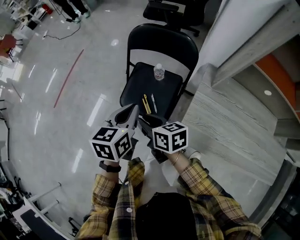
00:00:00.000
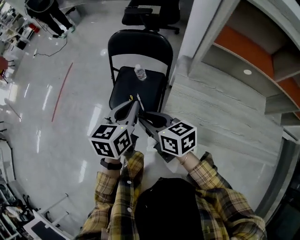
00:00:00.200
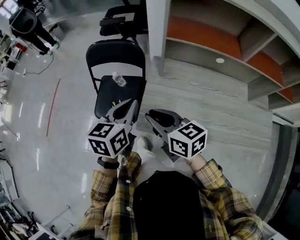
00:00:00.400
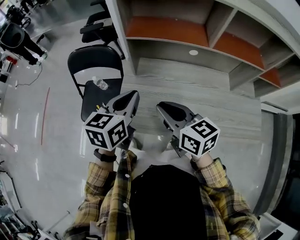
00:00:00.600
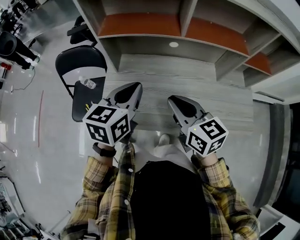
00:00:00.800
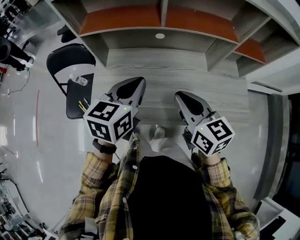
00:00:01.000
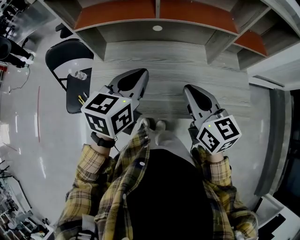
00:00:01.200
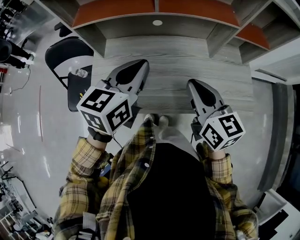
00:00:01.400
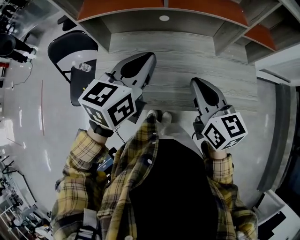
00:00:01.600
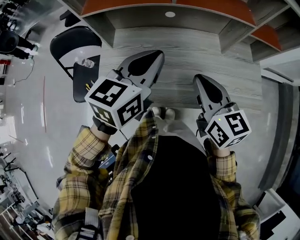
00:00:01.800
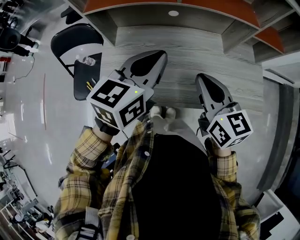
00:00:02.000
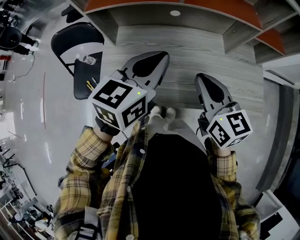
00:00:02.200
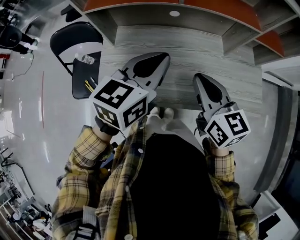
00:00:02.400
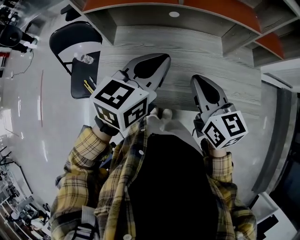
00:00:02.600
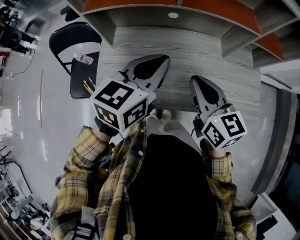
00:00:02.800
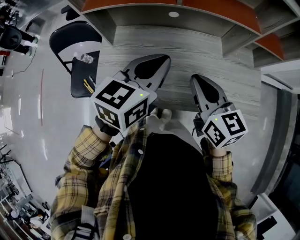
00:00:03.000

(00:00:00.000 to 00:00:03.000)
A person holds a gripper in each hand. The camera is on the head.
00:00:00.000 - 00:00:01.600: Both grippers are carried roughly 60 cm. The right gripper swivels approximately 50 degrees, and closes up. The left gripper turns by approximately 40 degrees.
00:00:01.600 - 00:00:03.000: There are only small adjustments of the grippers.

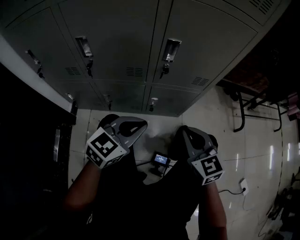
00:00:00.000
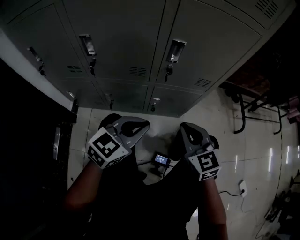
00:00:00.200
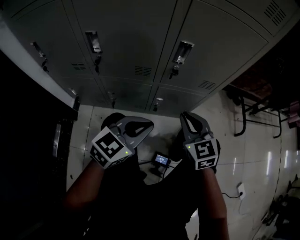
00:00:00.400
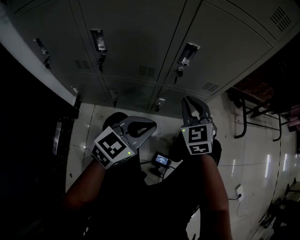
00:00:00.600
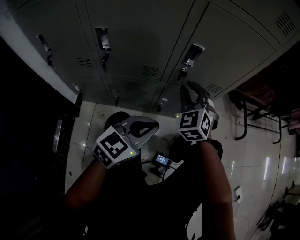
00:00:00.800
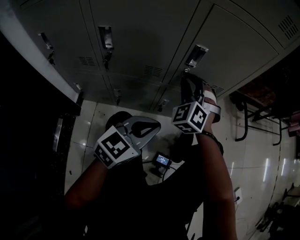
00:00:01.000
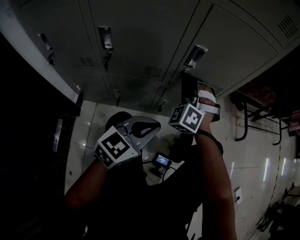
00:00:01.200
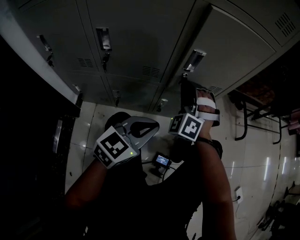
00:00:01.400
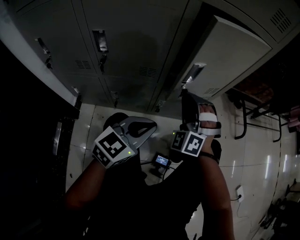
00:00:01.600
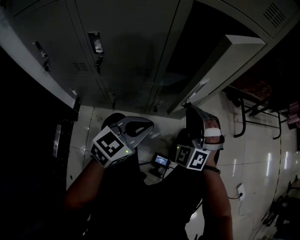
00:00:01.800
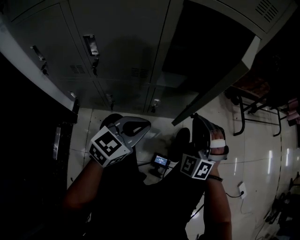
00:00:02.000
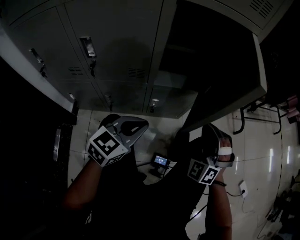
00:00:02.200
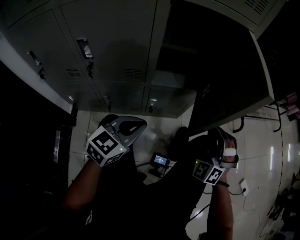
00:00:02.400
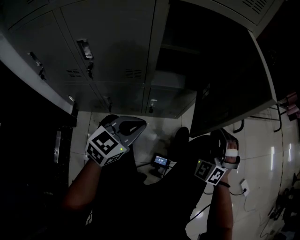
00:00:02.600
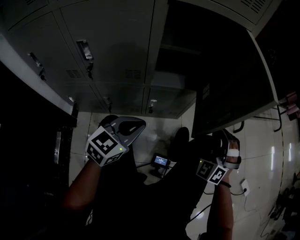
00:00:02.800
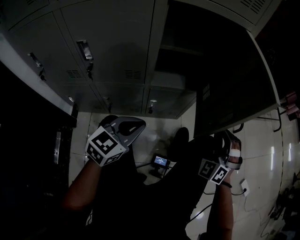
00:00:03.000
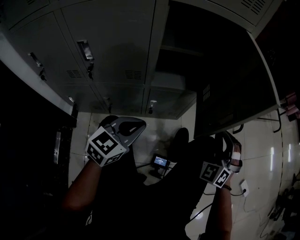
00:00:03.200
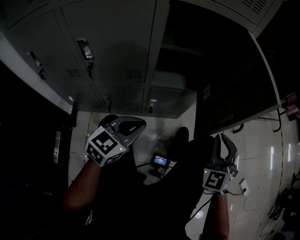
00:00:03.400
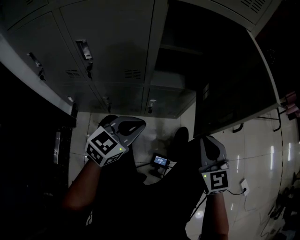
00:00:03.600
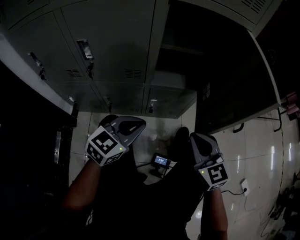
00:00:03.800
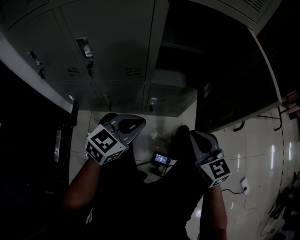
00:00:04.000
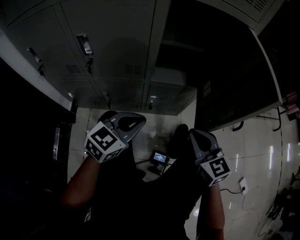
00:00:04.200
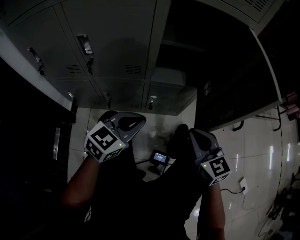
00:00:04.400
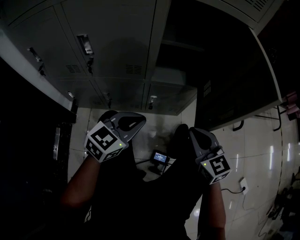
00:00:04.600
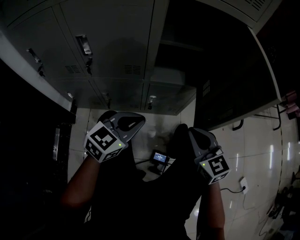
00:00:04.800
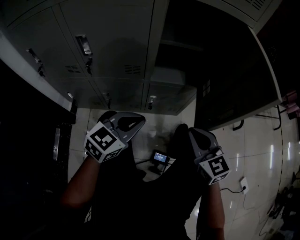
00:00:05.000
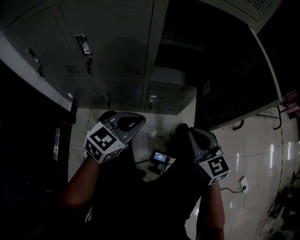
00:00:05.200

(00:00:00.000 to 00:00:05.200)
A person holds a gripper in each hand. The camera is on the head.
00:00:00.000 - 00:00:01.800: The right gripper travels forward by roughly 5 cm, and rotates around the line of its fingers by some 60 degrees, counterclockwise from behind.
00:00:01.800 - 00:00:03.400: The right gripper goes approximately 15 cm to the right, and rotates approximately 30 degrees.
00:00:03.400 - 00:00:05.200: The right gripper goes about 10 cm to the left, and turns by some 50 degrees.

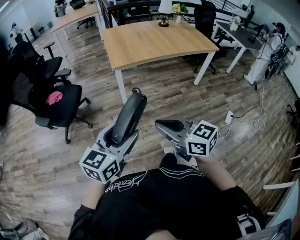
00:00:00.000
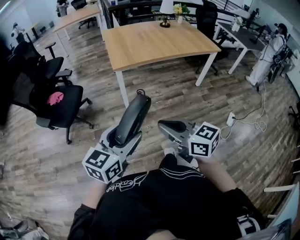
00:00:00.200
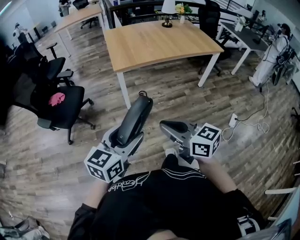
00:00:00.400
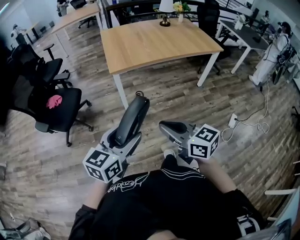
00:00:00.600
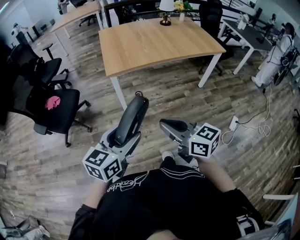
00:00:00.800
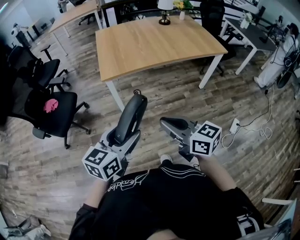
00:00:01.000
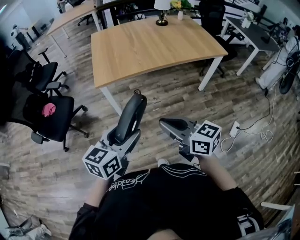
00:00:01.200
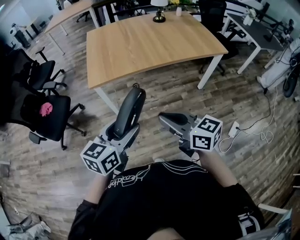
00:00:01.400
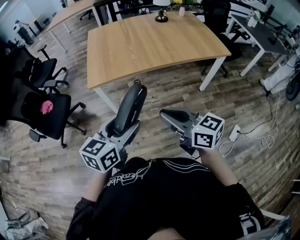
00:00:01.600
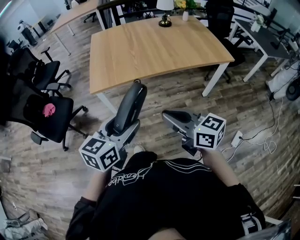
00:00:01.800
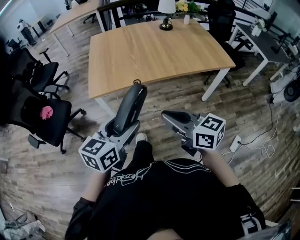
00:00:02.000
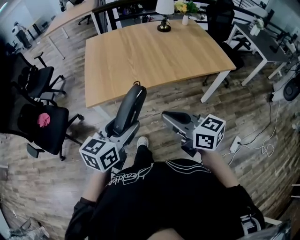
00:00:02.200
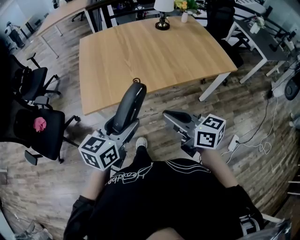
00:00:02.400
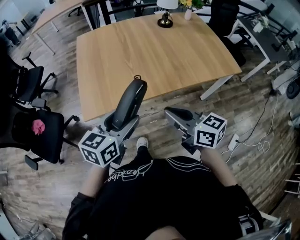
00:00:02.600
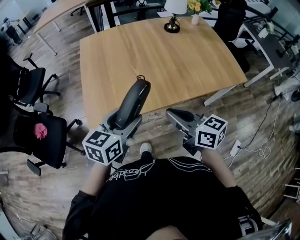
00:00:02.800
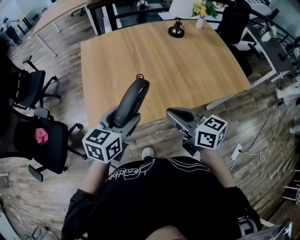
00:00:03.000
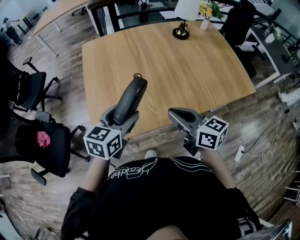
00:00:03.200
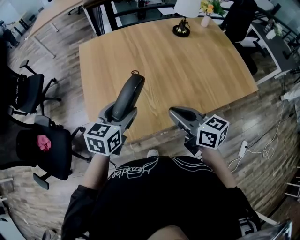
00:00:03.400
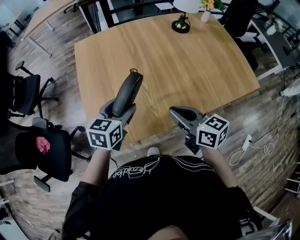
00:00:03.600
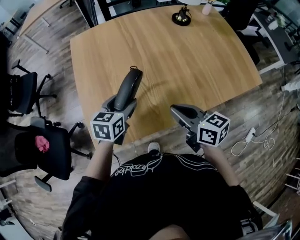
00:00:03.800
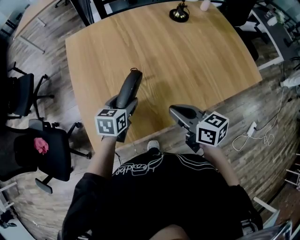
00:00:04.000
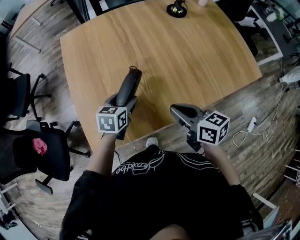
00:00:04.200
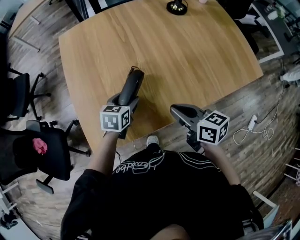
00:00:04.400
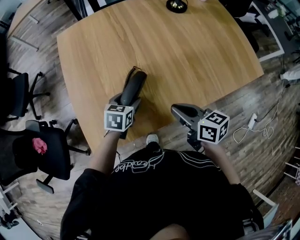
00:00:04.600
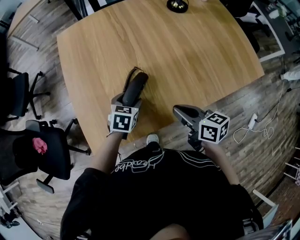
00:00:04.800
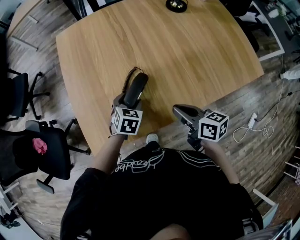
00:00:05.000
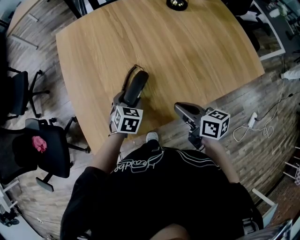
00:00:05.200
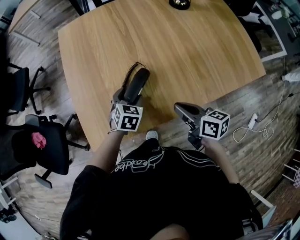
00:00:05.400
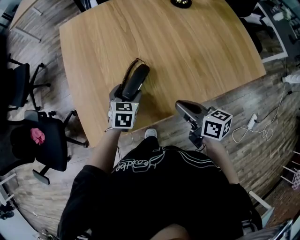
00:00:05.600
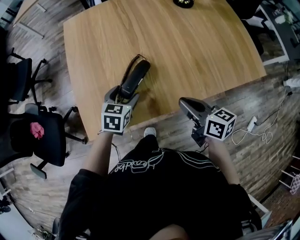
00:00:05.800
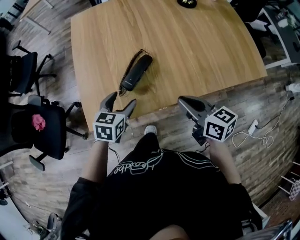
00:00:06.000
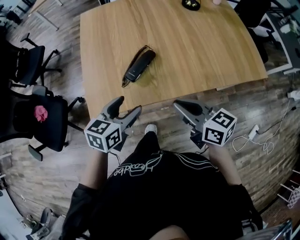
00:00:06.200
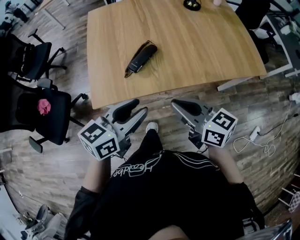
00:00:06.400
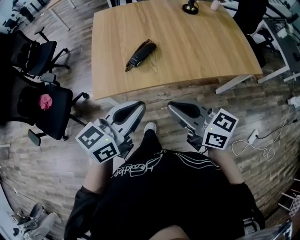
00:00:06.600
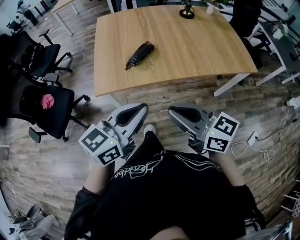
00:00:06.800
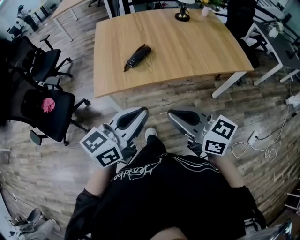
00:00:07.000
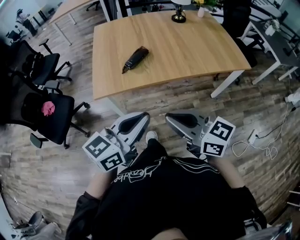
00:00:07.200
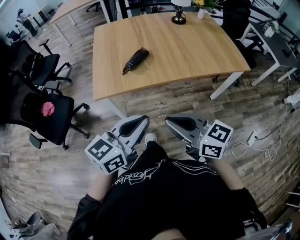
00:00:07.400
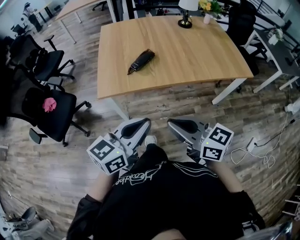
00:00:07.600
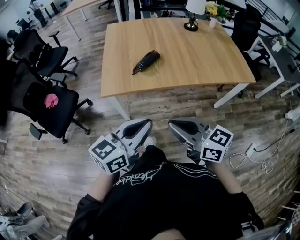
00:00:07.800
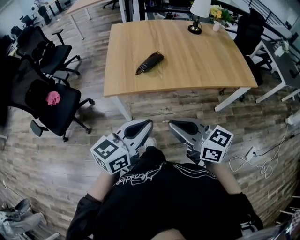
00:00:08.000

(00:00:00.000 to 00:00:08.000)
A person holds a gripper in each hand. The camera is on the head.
00:00:00.000 - 00:00:01.600: Both grippers move to the right and forward, roughly 40 cm.
00:00:01.600 - 00:00:03.200: The pair of grippers is taken forward, approximately 40 cm.
00:00:03.200 - 00:00:04.800: The left gripper is displaced downward and forward by approximately 25 cm, and rotates roughly 30 degrees. Meanwhile the right gripper travels downward by approximately 15 cm.
00:00:04.800 - 00:00:06.400: The left gripper travels backward and upward by some 35 cm, and angles its fingers upward, by some 40 degrees; the right gripper heads backward and upward, covering about 20 cm, and rotates roughly 20 degrees.
00:00:06.400 - 00:00:08.000: The grippers both shift backward by about 20 cm. The left gripper closes.

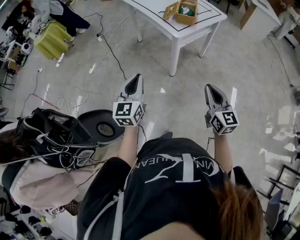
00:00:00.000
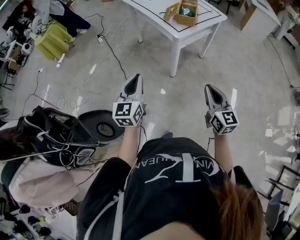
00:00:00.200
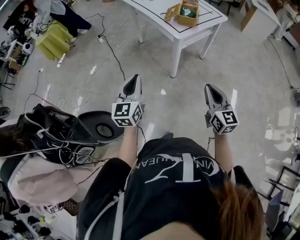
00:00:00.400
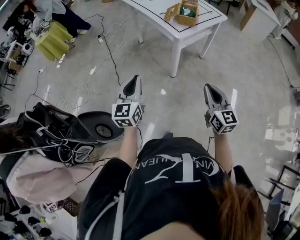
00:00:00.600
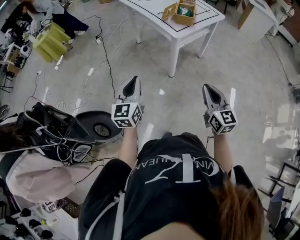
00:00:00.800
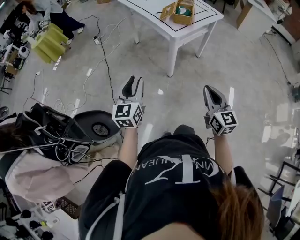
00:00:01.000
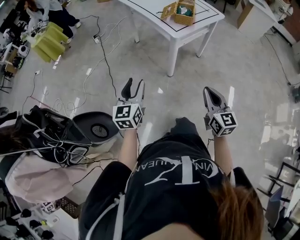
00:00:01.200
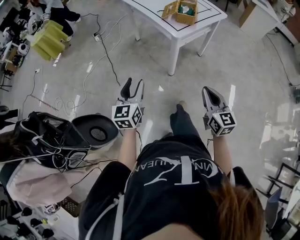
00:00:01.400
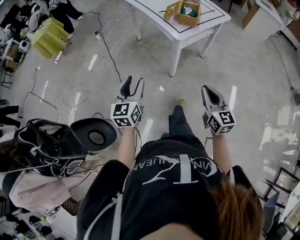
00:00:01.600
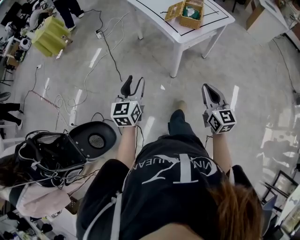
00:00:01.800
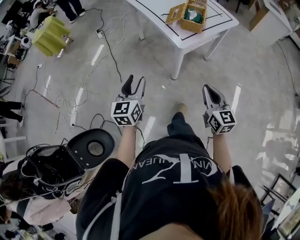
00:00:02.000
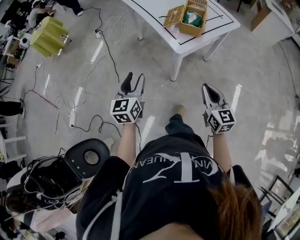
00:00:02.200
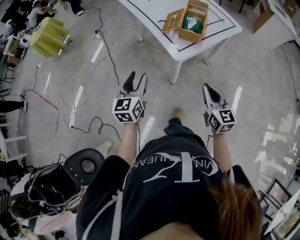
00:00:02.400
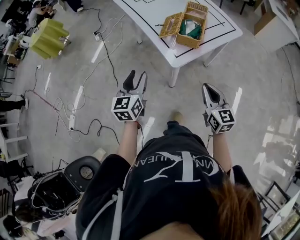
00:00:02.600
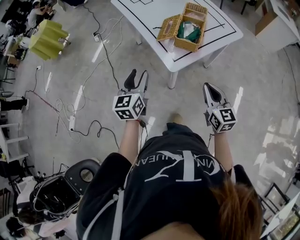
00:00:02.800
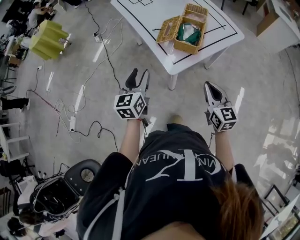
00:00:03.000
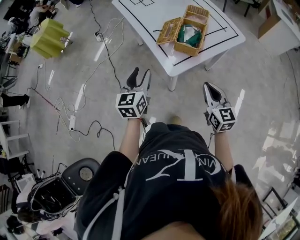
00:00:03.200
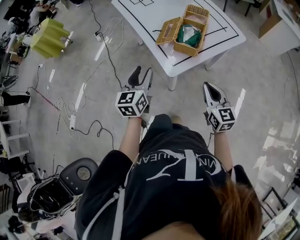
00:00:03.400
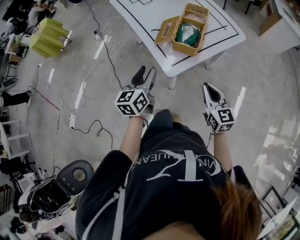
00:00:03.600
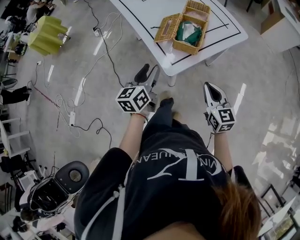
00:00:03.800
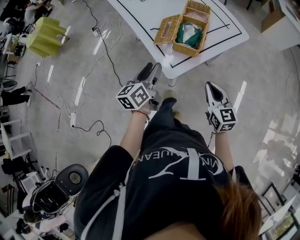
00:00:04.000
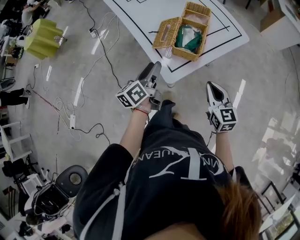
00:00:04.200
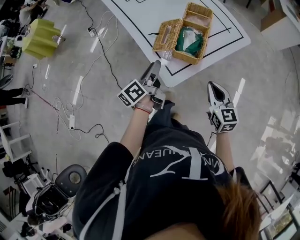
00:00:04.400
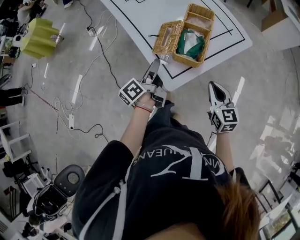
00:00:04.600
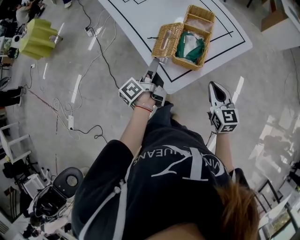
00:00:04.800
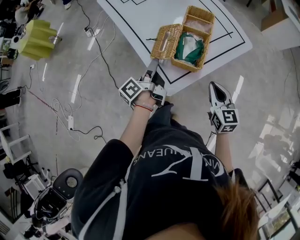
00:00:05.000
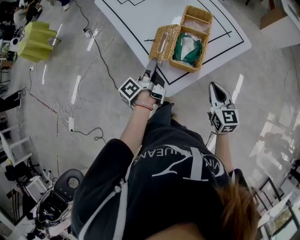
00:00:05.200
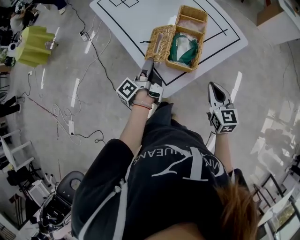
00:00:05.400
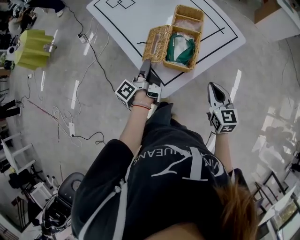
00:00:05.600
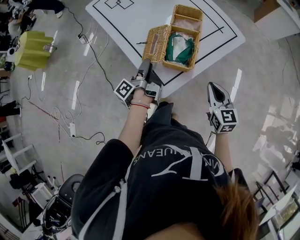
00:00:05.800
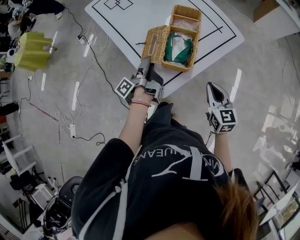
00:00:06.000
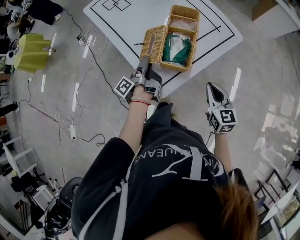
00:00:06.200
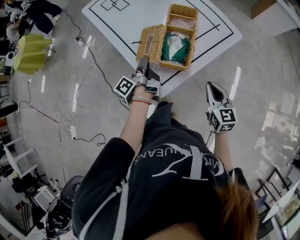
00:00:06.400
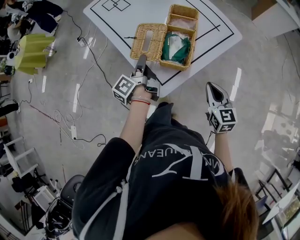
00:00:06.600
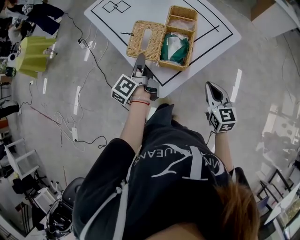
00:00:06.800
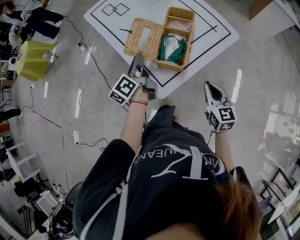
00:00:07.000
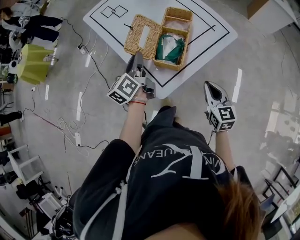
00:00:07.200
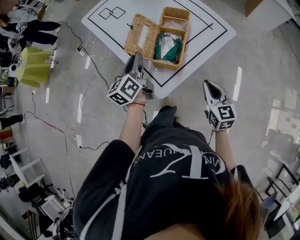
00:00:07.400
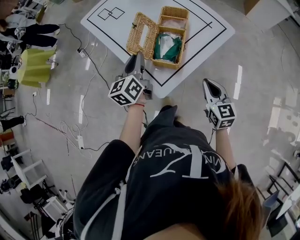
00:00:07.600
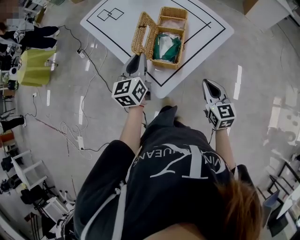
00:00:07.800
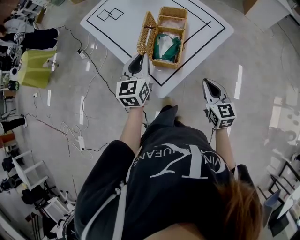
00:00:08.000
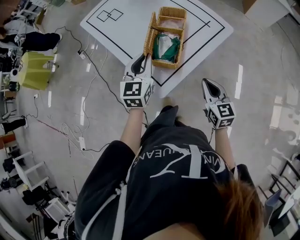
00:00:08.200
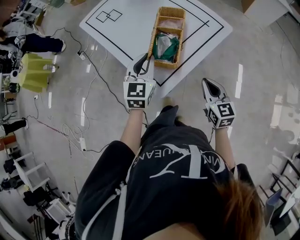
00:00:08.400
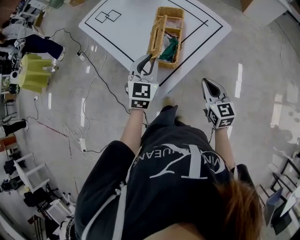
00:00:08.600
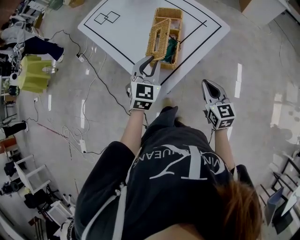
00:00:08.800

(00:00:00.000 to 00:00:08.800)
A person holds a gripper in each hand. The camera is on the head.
00:00:00.000 - 00:00:01.400: The left gripper opens.
00:00:01.400 - 00:00:03.000: The left gripper moves forward and to the right, approximately 35 cm; the right gripper travels forward by approximately 35 cm.
00:00:03.000 - 00:00:04.400: The left gripper heads forward and to the right, covering roughly 15 cm, and rotates around the line of its fingers by approximately 50 degrees, counterclockwise from behind. The right gripper shifts some 10 cm forward.
00:00:04.400 - 00:00:05.800: The left gripper moves forward, about 5 cm, and turns by some 40 degrees. The right gripper moves approximately 5 cm.
00:00:05.800 - 00:00:07.400: The left gripper travels upward by some 10 cm, rolls clockwise, seen from behind, by about 60 degrees, and closes its fingers.
00:00:07.400 - 00:00:08.800: The left gripper moves to the right, roughly 10 cm, and rolls clockwise, seen from behind, by some 60 degrees.
